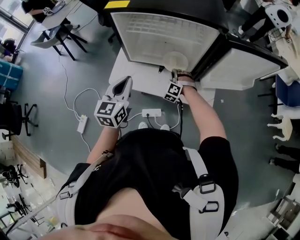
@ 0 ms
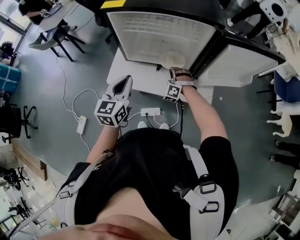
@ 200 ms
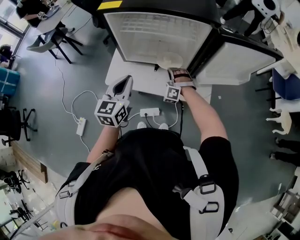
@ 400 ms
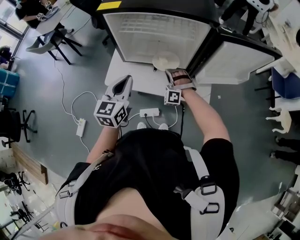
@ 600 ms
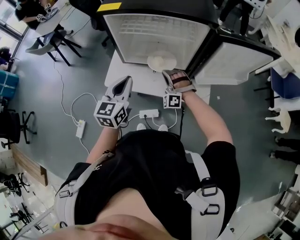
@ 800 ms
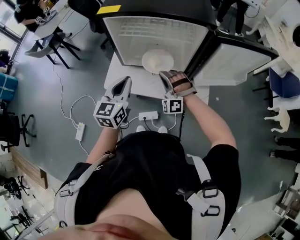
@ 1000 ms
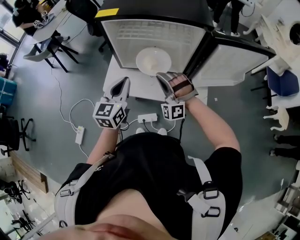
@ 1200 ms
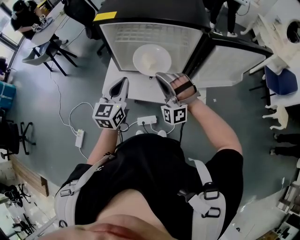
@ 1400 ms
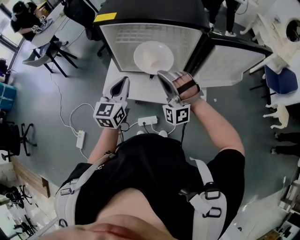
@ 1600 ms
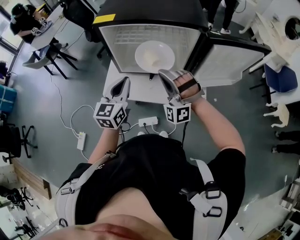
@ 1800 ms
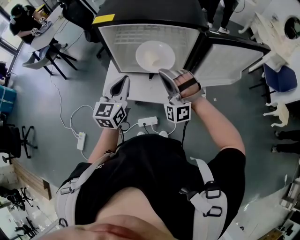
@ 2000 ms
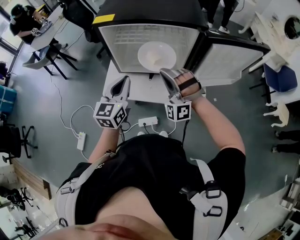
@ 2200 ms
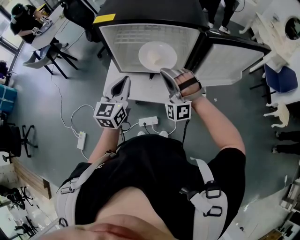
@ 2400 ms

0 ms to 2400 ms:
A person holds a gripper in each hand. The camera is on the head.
0 ms to 1200 ms: The right gripper moves upward and backward, roughly 25 cm, and rotates some 40 degrees.
1200 ms to 2400 ms: The right gripper goes some 5 cm upward.

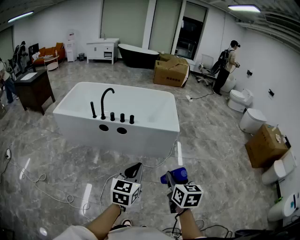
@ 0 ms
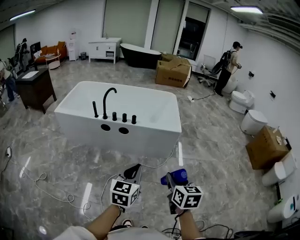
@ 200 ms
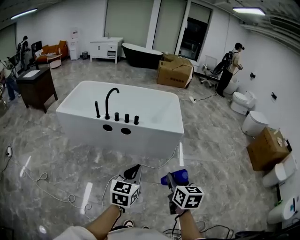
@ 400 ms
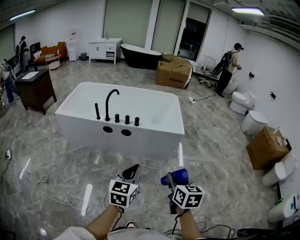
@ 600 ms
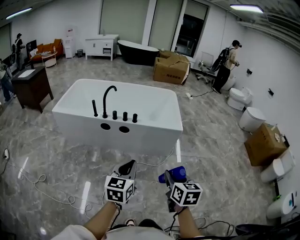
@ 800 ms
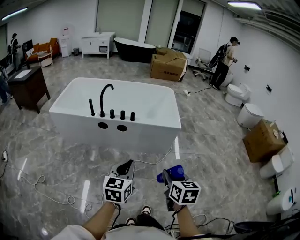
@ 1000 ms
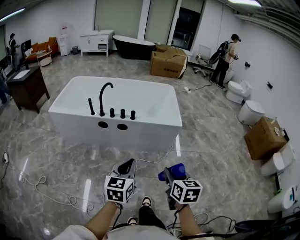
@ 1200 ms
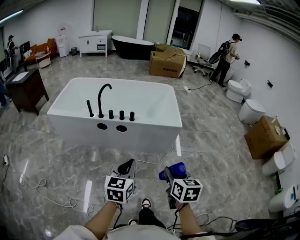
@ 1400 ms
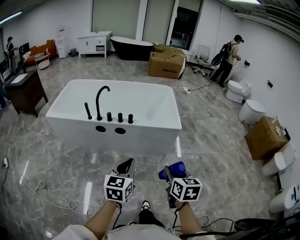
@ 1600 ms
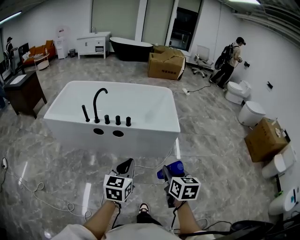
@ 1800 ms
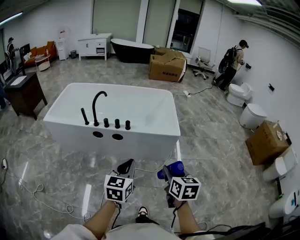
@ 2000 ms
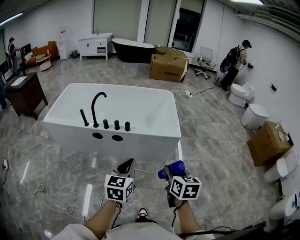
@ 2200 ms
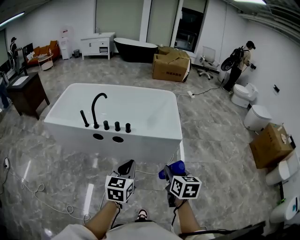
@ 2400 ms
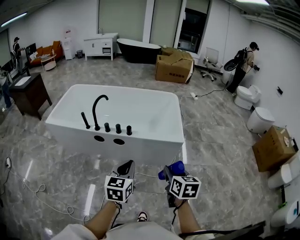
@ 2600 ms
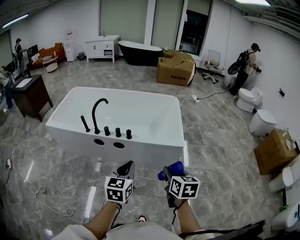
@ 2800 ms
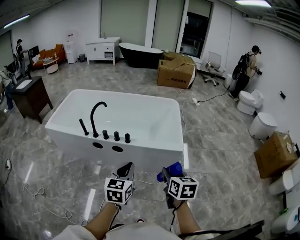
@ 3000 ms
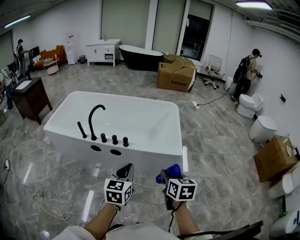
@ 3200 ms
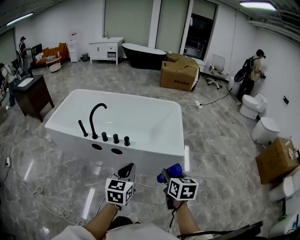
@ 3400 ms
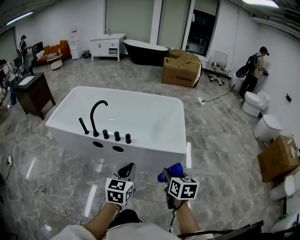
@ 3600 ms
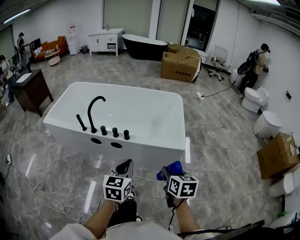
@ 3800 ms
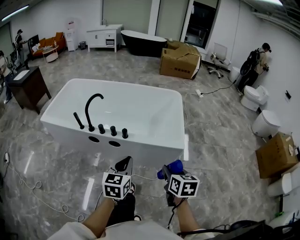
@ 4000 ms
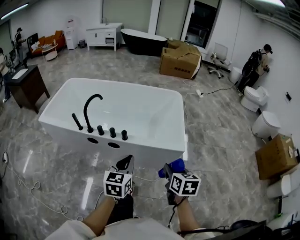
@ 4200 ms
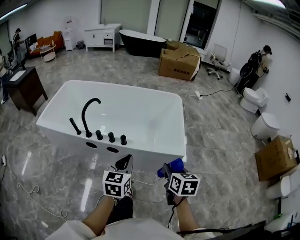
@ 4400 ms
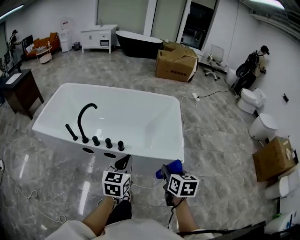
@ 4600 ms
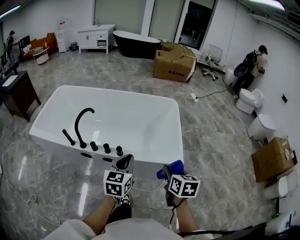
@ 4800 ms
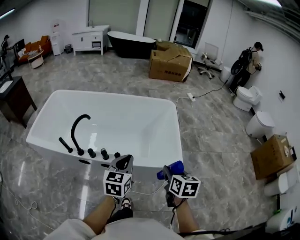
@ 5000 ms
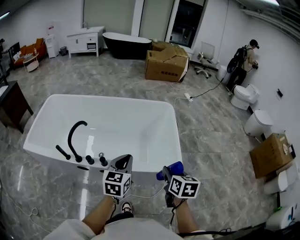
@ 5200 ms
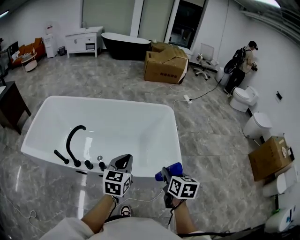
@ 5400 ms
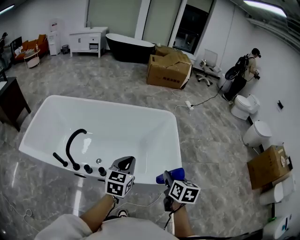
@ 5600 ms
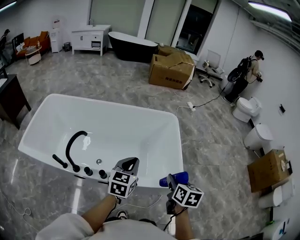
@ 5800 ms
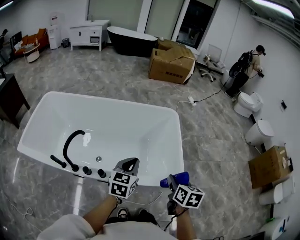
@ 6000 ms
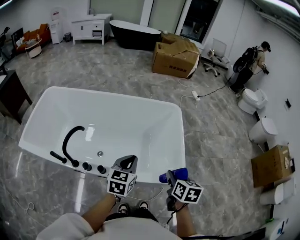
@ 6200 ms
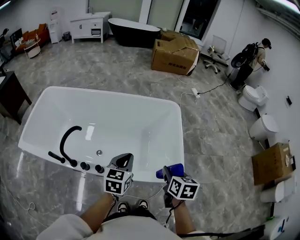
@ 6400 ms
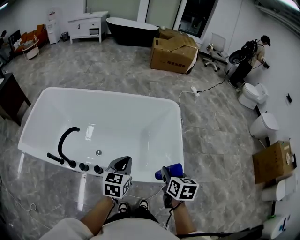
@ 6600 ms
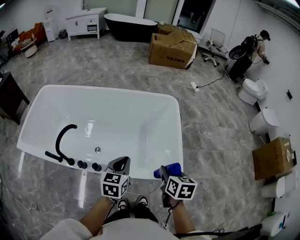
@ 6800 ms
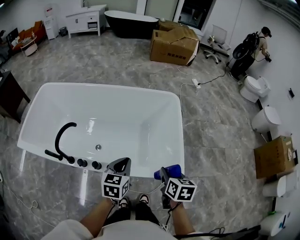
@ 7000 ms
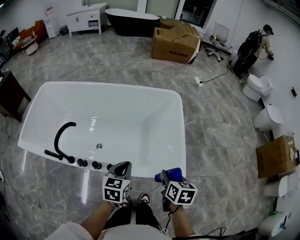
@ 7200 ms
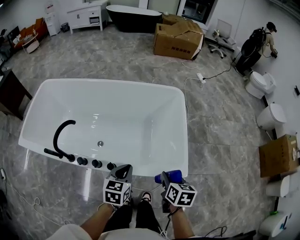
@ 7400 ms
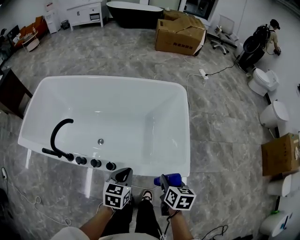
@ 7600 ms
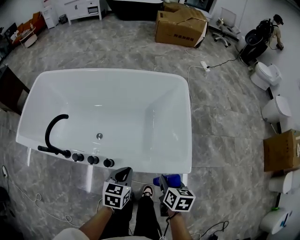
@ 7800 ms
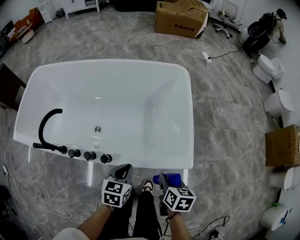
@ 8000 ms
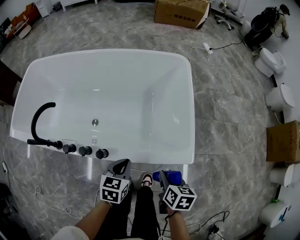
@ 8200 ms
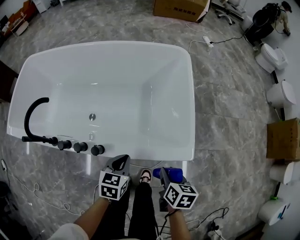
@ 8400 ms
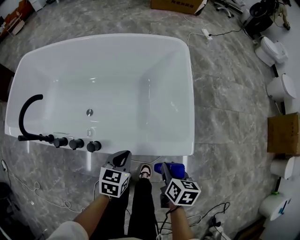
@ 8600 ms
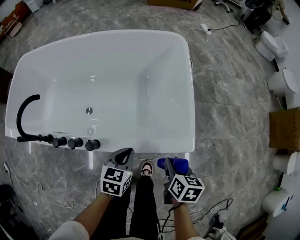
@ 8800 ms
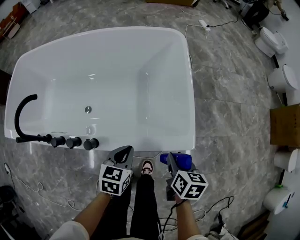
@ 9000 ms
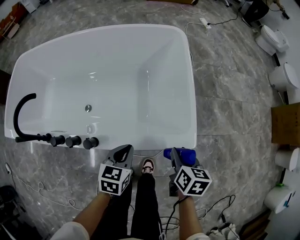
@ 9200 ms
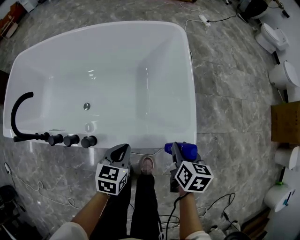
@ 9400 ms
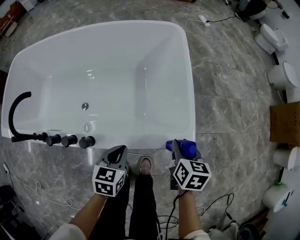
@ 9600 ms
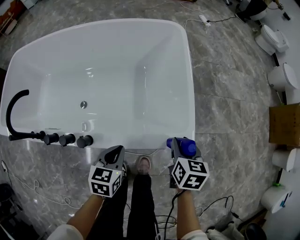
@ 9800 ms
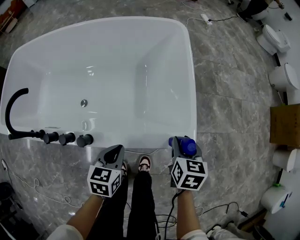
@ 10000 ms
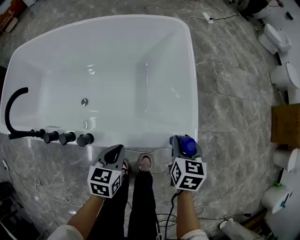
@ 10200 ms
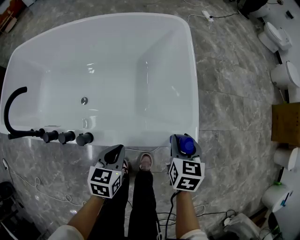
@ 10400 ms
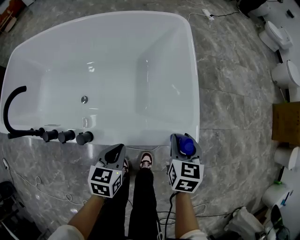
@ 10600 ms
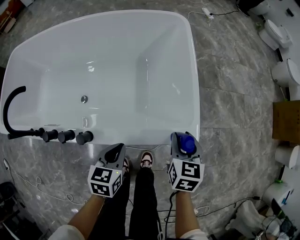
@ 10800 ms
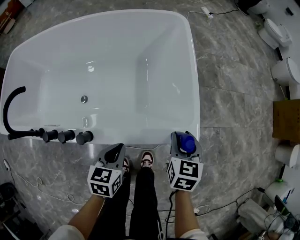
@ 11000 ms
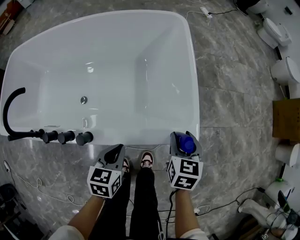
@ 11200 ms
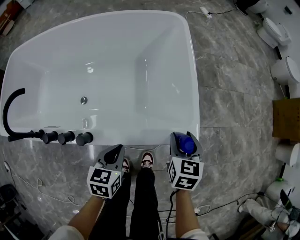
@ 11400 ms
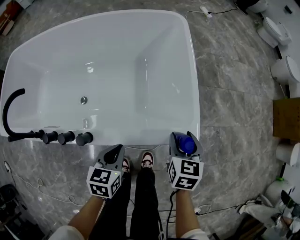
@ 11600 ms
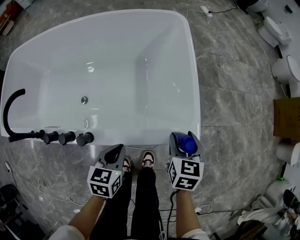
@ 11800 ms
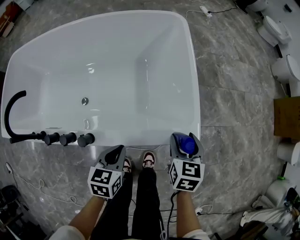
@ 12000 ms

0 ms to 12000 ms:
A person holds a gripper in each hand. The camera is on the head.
0 ms to 1600 ms: The left gripper travels forward and to the left by roughly 10 cm. Meanwhile the right gripper is displaced forward by roughly 5 cm.
1600 ms to 3000 ms: Both grippers move forward, about 15 cm.
3000 ms to 4400 ms: Both grippers travel together forward, approximately 10 cm.
4400 ms to 6000 ms: Both grippers move forward, approximately 20 cm.
6000 ms to 7600 ms: The left gripper is displaced downward and backward by about 10 cm, while the right gripper goes roughly 10 cm downward.
7600 ms to 9000 ms: Both grippers travel together downward and to the right, about 10 cm.
9000 ms to 10400 ms: The right gripper goes approximately 5 cm forward, and turns by about 20 degrees.
10400 ms to 12000 ms: The two grippers keep their place.

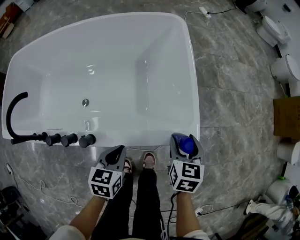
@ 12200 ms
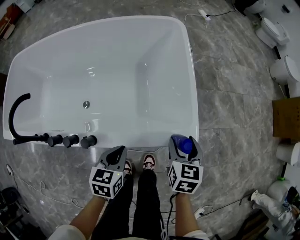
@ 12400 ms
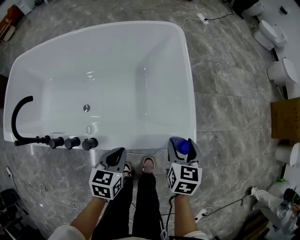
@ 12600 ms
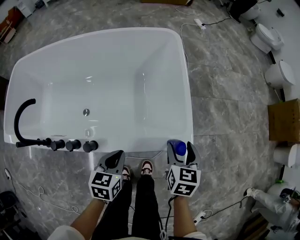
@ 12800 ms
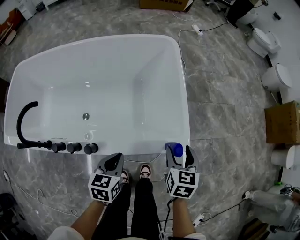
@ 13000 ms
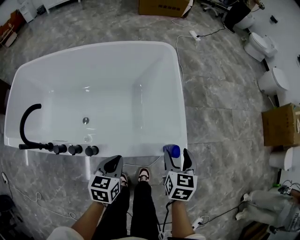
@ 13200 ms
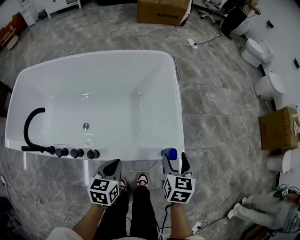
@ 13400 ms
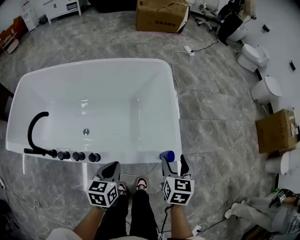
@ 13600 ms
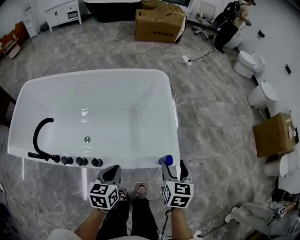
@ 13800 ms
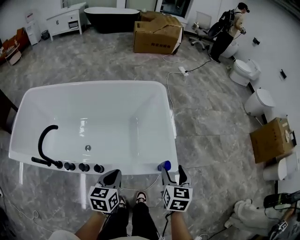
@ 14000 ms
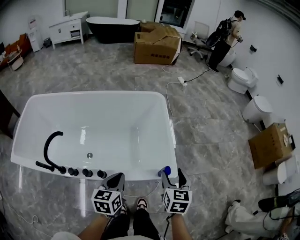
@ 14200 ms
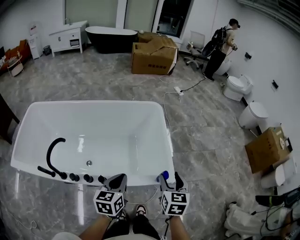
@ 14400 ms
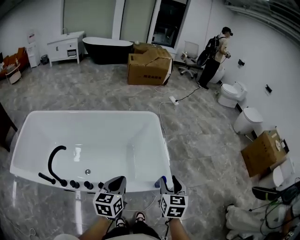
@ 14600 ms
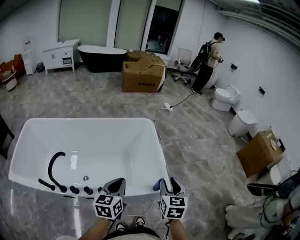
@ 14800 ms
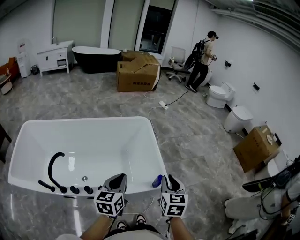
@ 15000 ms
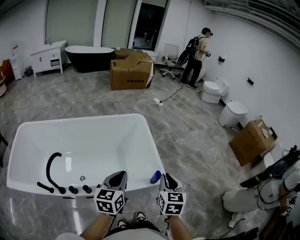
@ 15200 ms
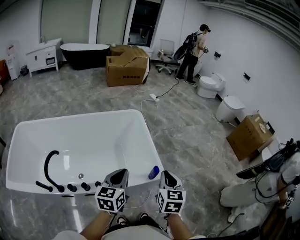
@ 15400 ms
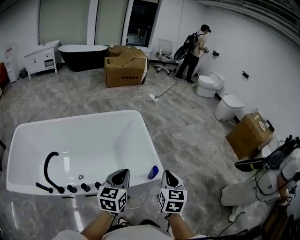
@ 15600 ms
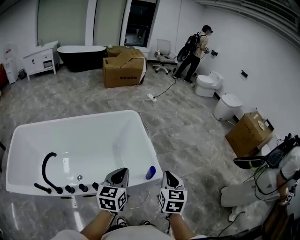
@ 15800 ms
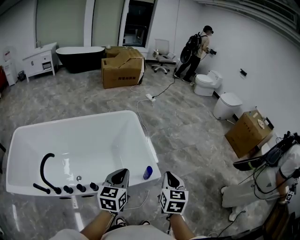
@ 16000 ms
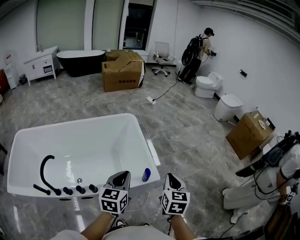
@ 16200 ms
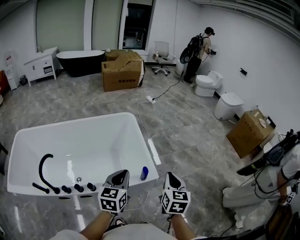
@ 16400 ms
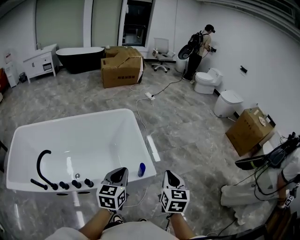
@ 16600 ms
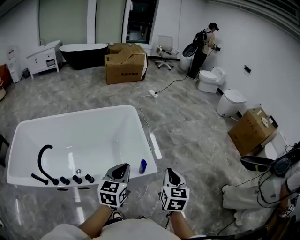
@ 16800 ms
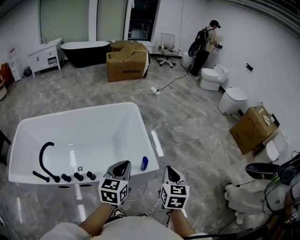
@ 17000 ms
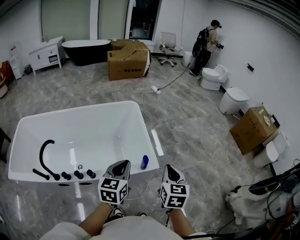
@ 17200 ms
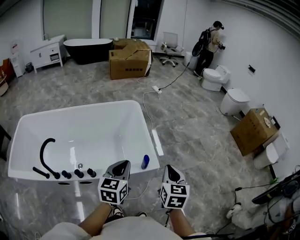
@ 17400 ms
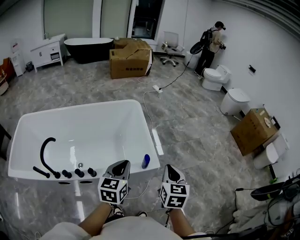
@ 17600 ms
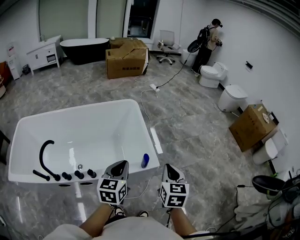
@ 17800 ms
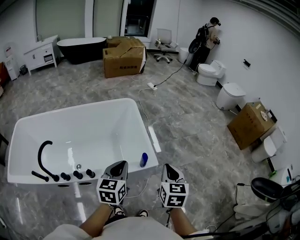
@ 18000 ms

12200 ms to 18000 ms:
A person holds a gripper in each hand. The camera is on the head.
12200 ms to 13600 ms: The two grippers go about 10 cm upward.
13600 ms to 15000 ms: Both grippers travel together upward, some 15 cm. The right gripper closes up. The left gripper rotates approximately 20 degrees.
15000 ms to 16600 ms: Both grippers move to the right, some 10 cm.
16600 ms to 18000 ms: The grippers stay close to where they were, moving slightly.

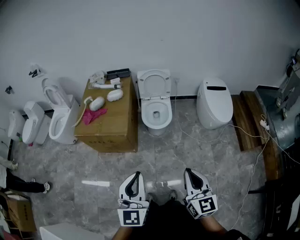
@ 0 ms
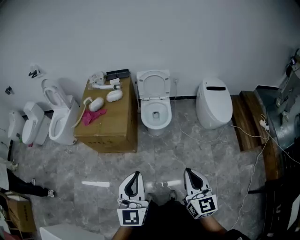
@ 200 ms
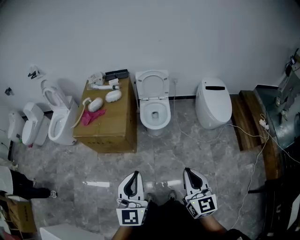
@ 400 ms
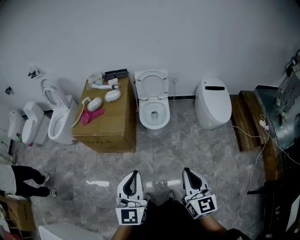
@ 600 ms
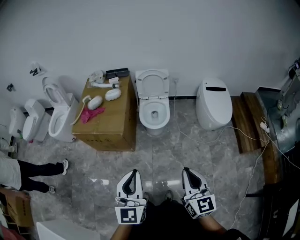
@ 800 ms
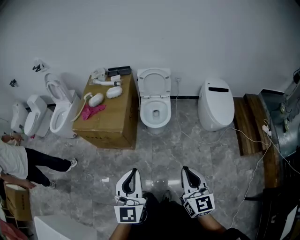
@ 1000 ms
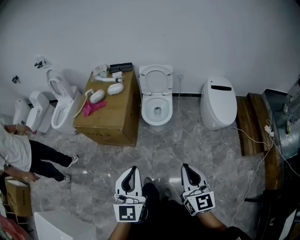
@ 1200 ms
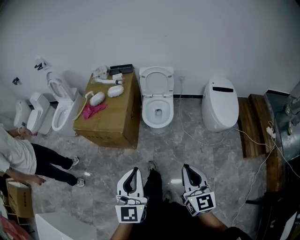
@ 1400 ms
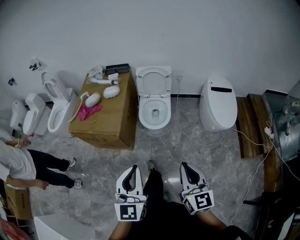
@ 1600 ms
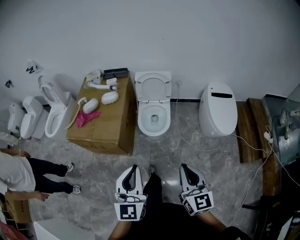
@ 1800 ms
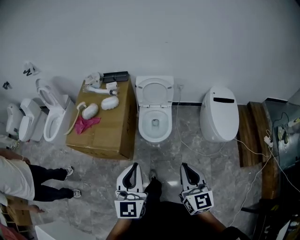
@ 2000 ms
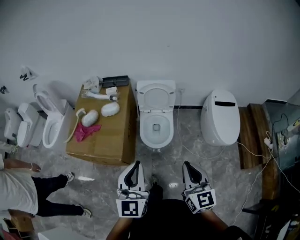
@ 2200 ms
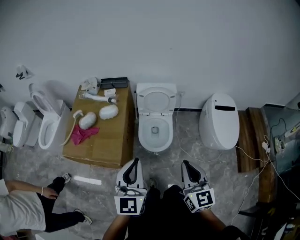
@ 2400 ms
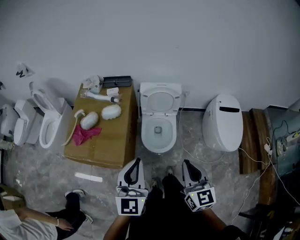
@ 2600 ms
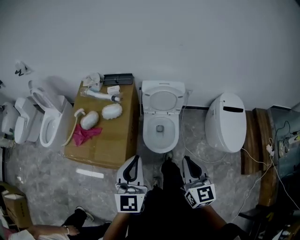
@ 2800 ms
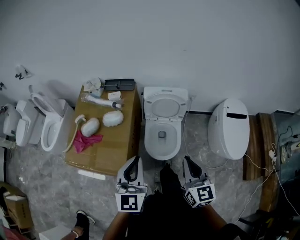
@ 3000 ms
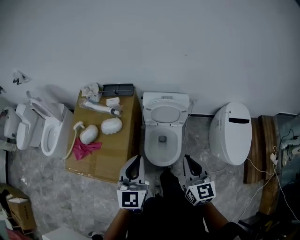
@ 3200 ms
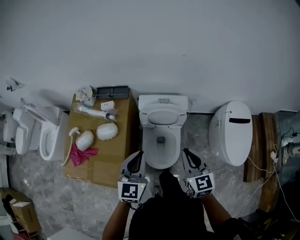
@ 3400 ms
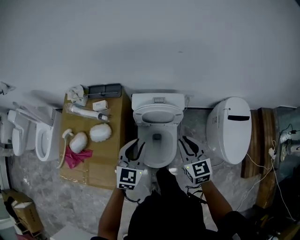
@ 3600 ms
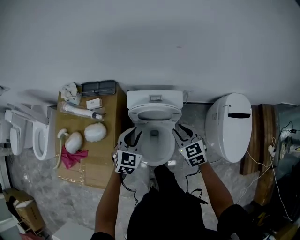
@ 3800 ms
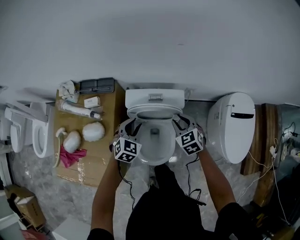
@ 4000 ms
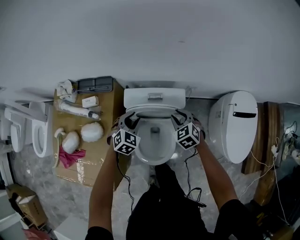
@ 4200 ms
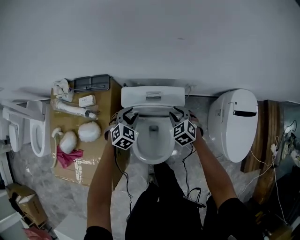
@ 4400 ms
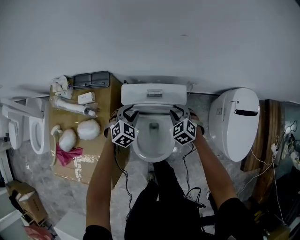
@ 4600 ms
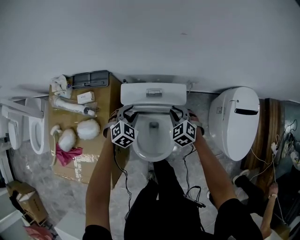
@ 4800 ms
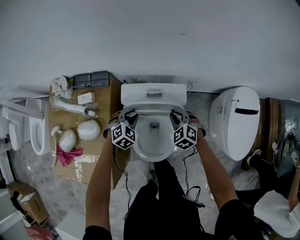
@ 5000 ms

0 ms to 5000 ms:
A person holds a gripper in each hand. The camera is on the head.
0 ms to 1600 ms: The right gripper goes some 15 cm forward and to the right; the left gripper heads to the right and forward, covering approximately 10 cm.
1600 ms to 3400 ms: The pair of grippers is taken forward, about 60 cm.
3400 ms to 5000 ms: Both grippers travel together downward and forward, approximately 40 cm. The right gripper angles its fingers downward, by approximately 30 degrees; the left gripper angles its fingers downward, by approximately 40 degrees, and opens its fingers.
